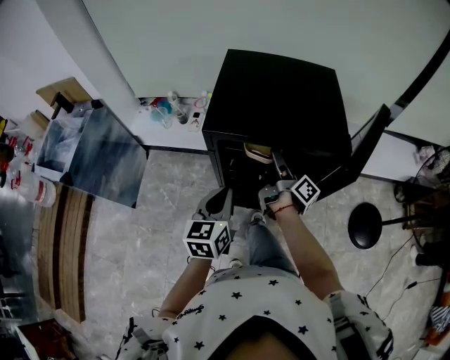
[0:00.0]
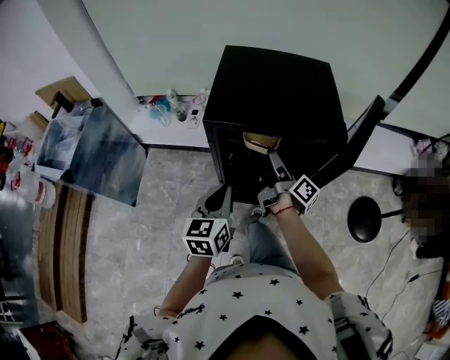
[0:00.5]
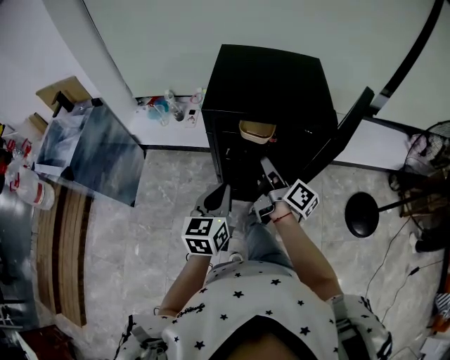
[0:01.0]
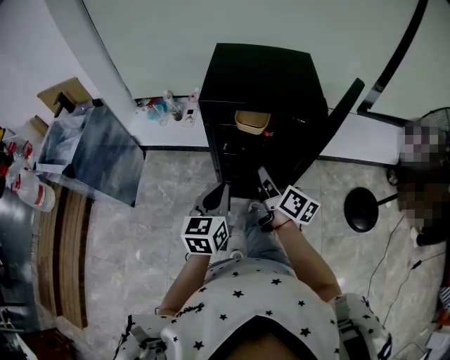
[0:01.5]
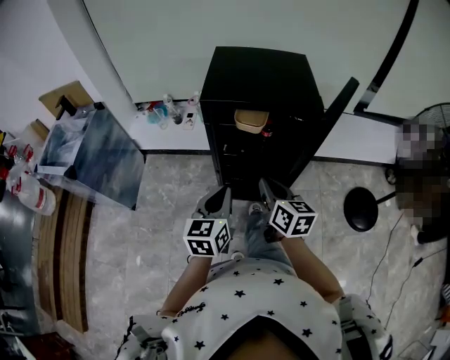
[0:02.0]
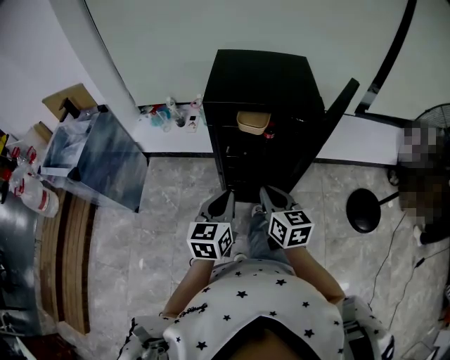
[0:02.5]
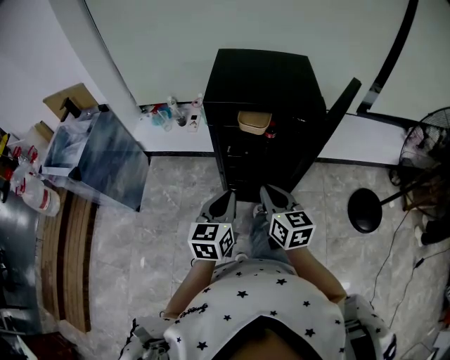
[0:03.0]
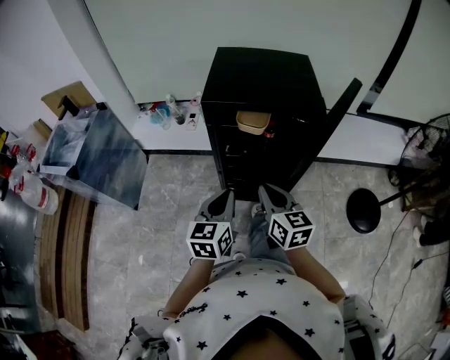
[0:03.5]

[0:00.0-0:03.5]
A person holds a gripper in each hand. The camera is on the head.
0:00.0 to 0:02.0: The left gripper travels backward by some 15 cm. Meanwhile the right gripper moves backward, approximately 25 cm, rolls counterclockwise, seen from behind, by roughly 60 degrees, and closes up.
0:02.0 to 0:03.5: The grippers stay close to where they were, moving slightly.

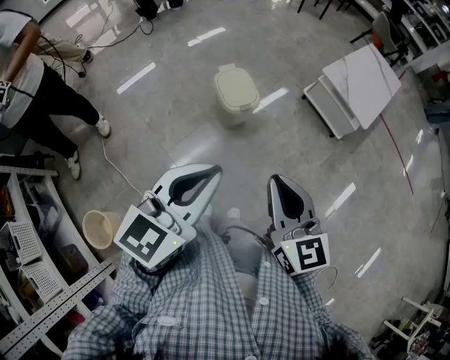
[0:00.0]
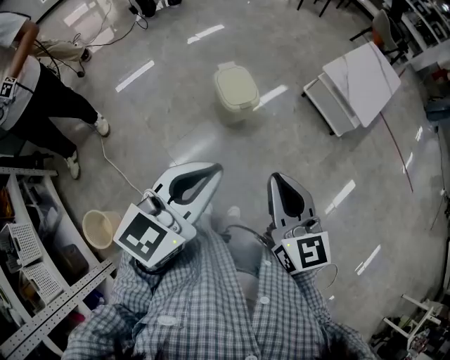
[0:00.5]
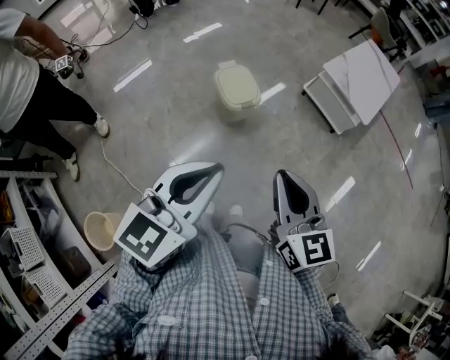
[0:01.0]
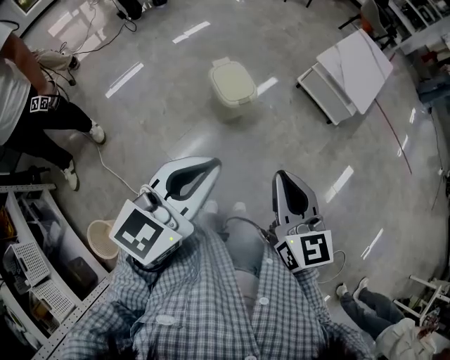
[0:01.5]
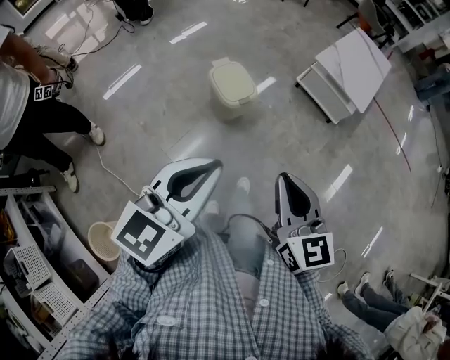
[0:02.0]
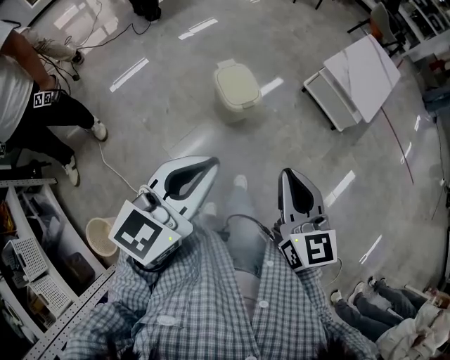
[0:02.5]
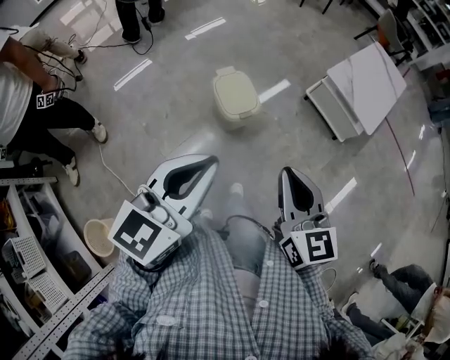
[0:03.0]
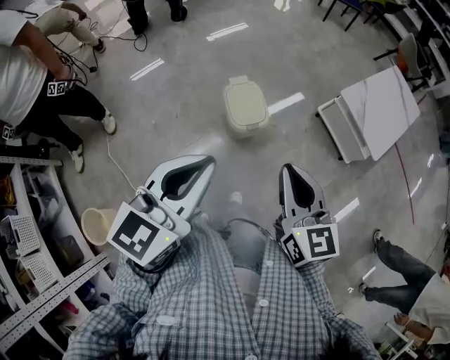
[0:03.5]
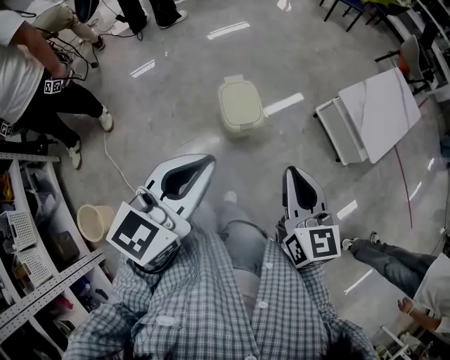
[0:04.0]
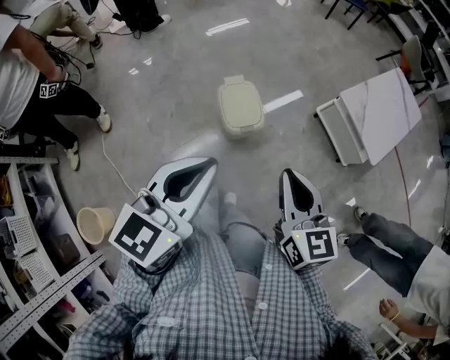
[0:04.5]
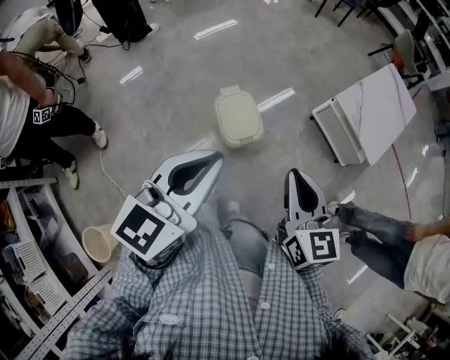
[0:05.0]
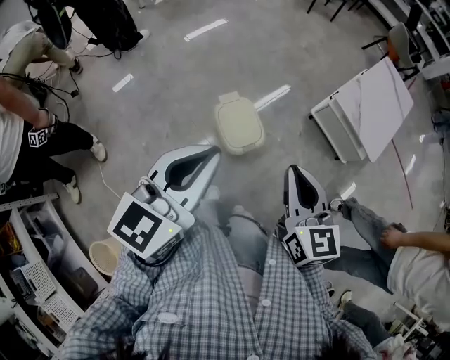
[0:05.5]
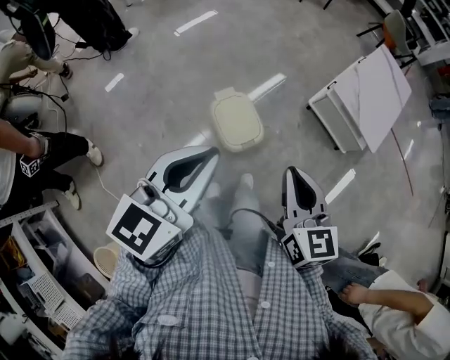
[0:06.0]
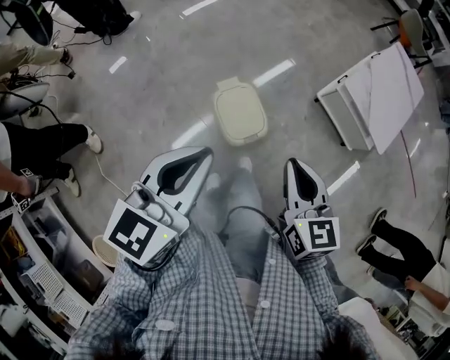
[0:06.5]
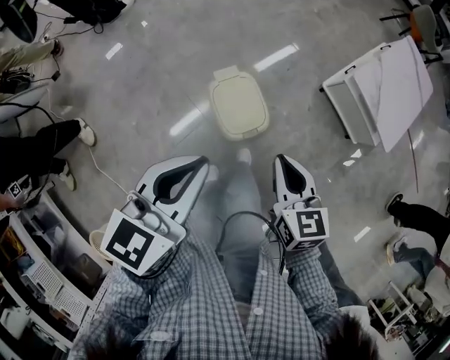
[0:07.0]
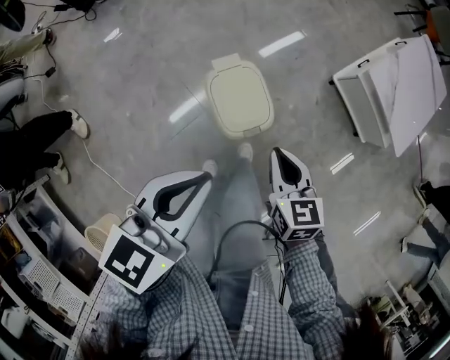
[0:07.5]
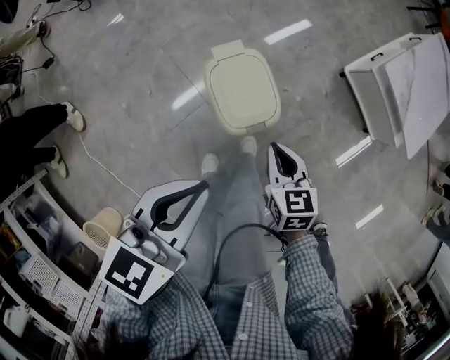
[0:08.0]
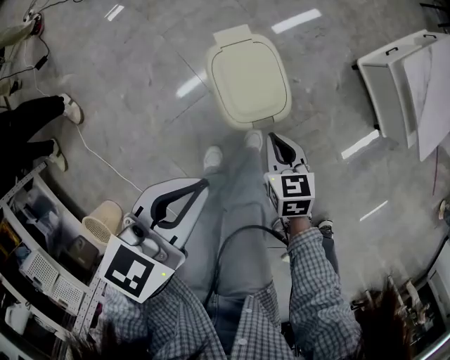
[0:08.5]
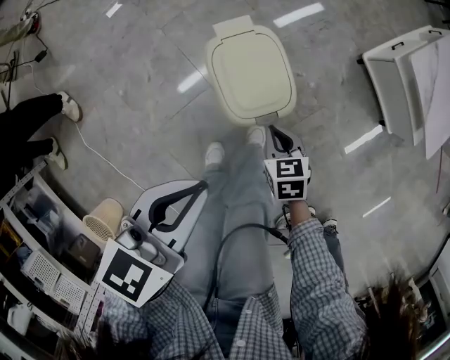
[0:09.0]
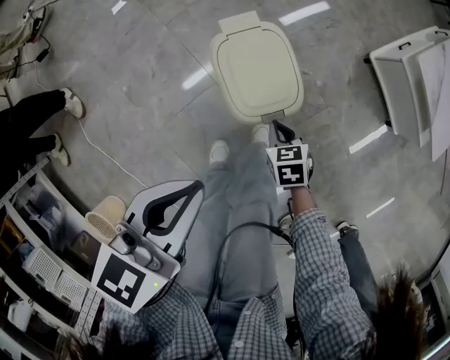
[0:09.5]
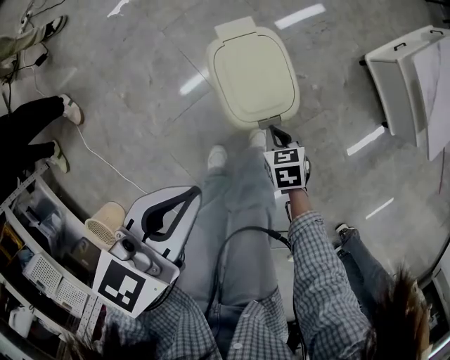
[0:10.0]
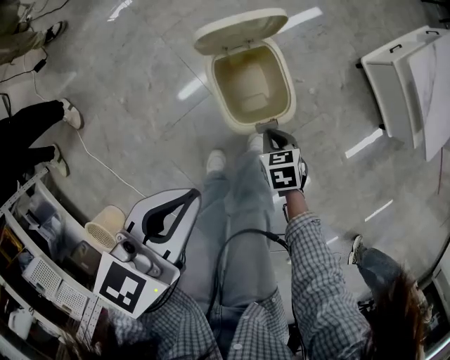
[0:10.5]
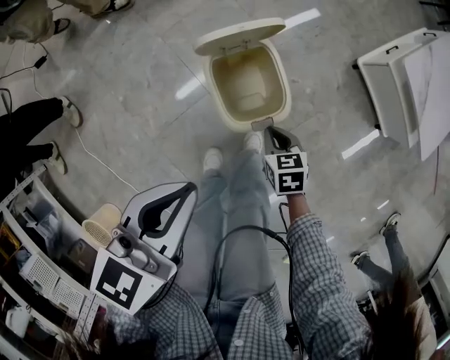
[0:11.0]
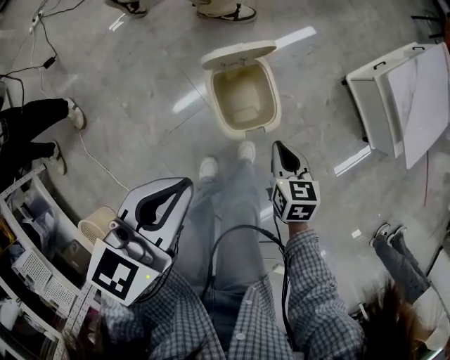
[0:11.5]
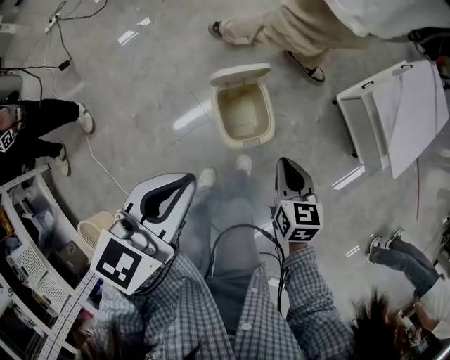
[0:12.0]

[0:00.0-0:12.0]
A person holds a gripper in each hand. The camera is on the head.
0:00.0 to 0:02.0: The grippers move only a little.
0:02.0 to 0:04.0: Both grippers move forward, some 20 cm.
0:04.0 to 0:06.0: The two grippers go some 15 cm forward and to the left.
0:06.0 to 0:08.0: The right gripper is displaced downward by approximately 35 cm, and swivels roughly 30 degrees; the left gripper heads downward, covering approximately 20 cm, and turns by approximately 20 degrees.
0:08.0 to 0:10.0: The right gripper heads downward, covering approximately 20 cm, and rotates approximately 20 degrees, while the left gripper goes about 5 cm downward.
0:10.0 to 0:12.0: The left gripper travels upward by roughly 15 cm. The right gripper is displaced upward by approximately 25 cm, and swivels roughly 30 degrees.

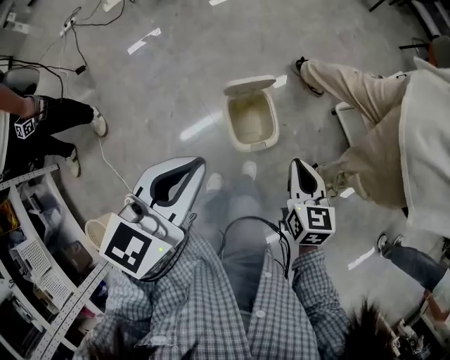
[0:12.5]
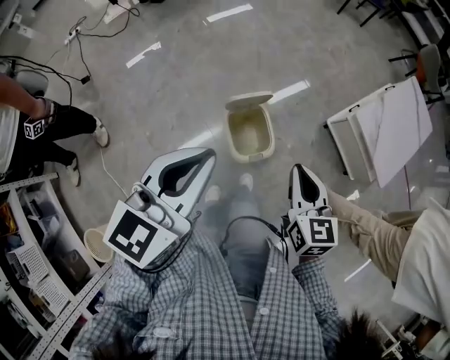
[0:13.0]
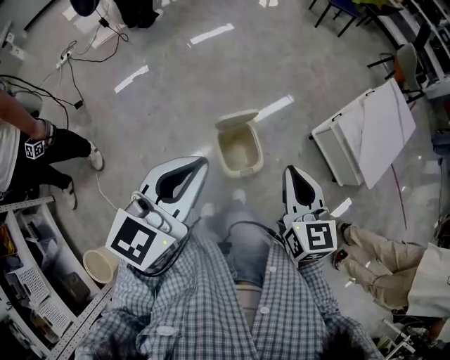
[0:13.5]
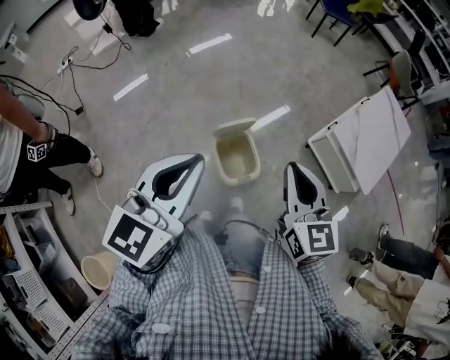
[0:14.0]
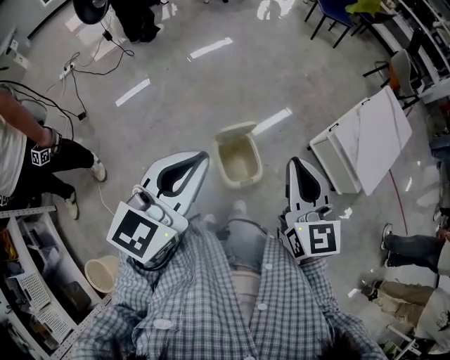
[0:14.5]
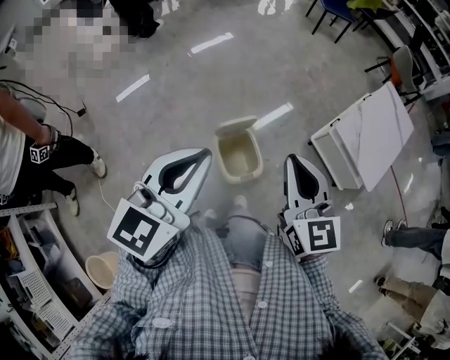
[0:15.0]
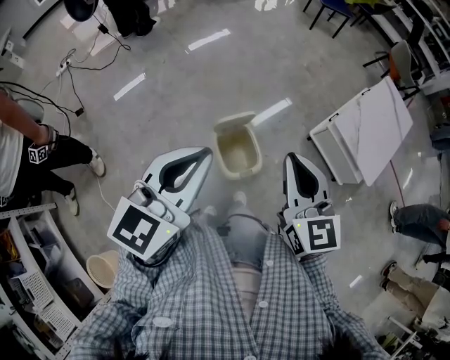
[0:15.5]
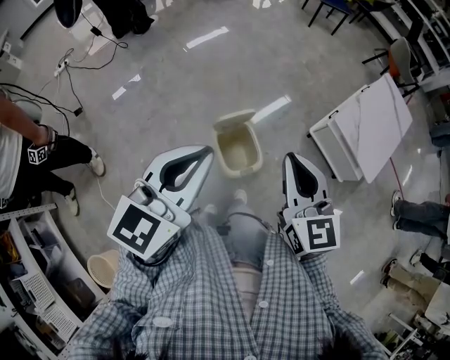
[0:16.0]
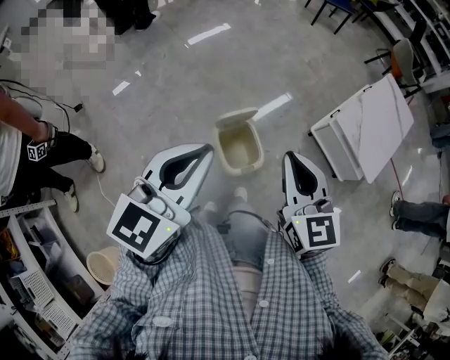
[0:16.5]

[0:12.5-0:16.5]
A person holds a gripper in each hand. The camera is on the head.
0:12.5 to 0:14.5: The right gripper is displaced upward by some 25 cm, and turns by about 30 degrees, while the left gripper heads upward, covering some 10 cm.
0:14.5 to 0:16.5: The grippers stay close to where they were, moving slightly.

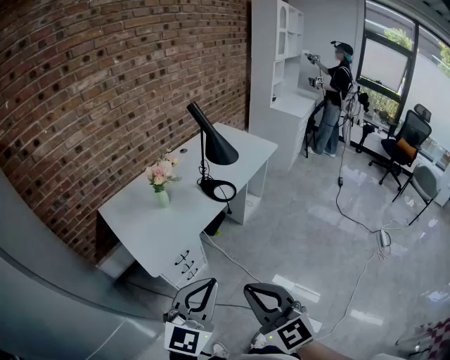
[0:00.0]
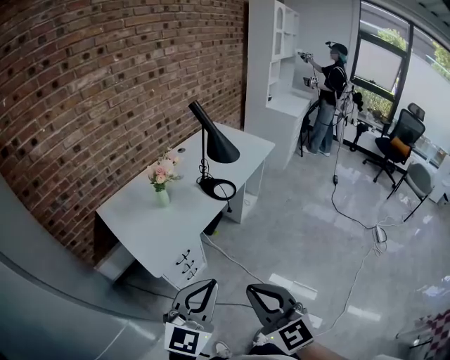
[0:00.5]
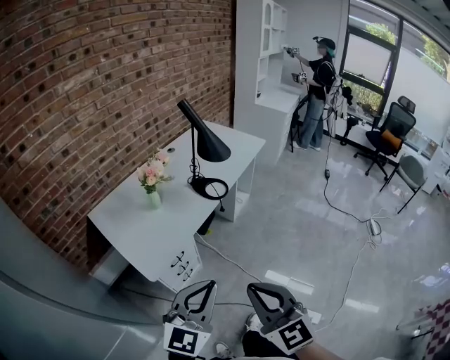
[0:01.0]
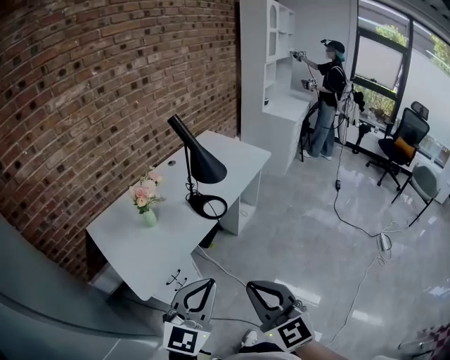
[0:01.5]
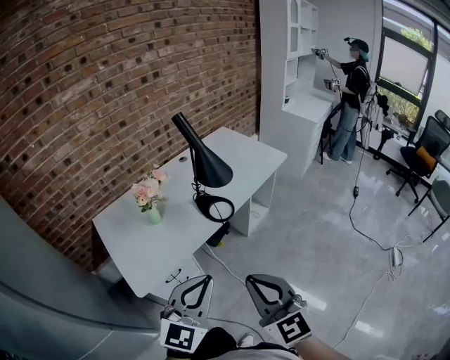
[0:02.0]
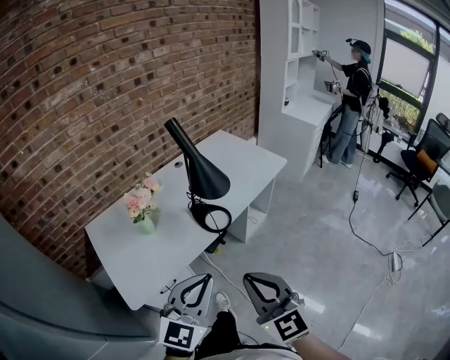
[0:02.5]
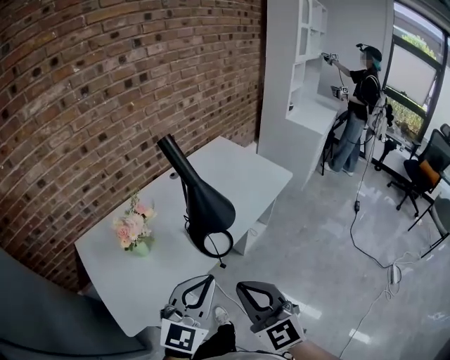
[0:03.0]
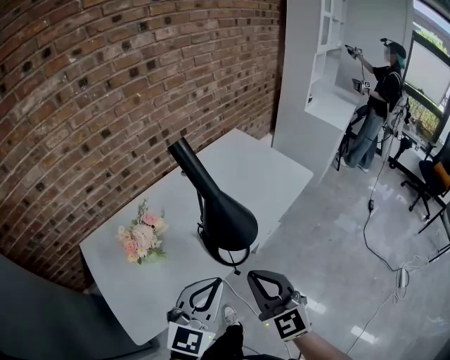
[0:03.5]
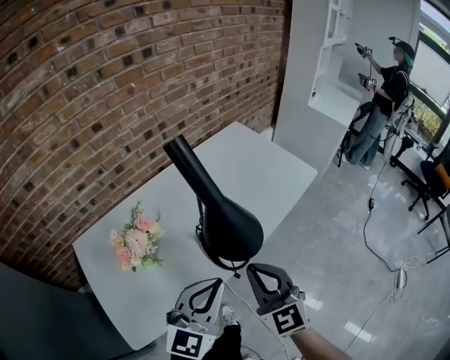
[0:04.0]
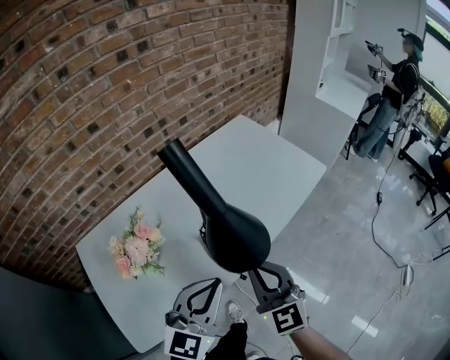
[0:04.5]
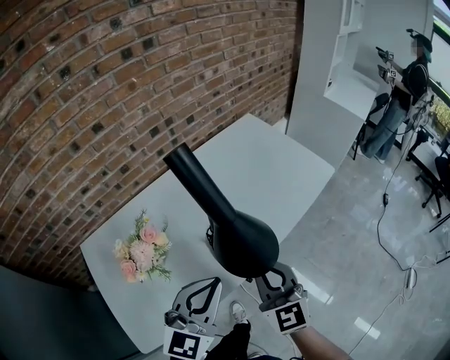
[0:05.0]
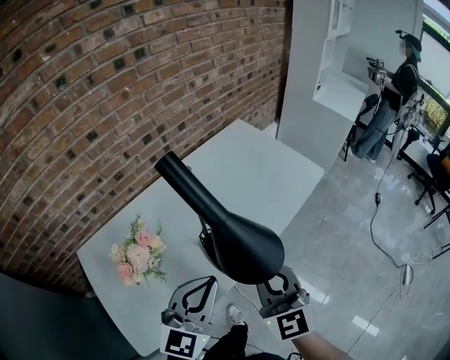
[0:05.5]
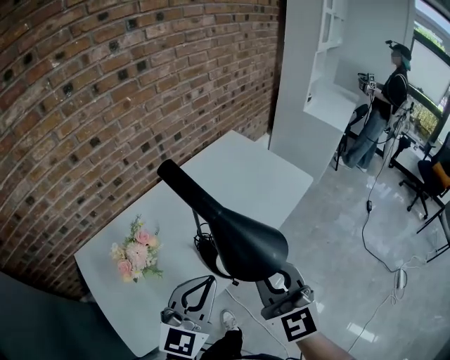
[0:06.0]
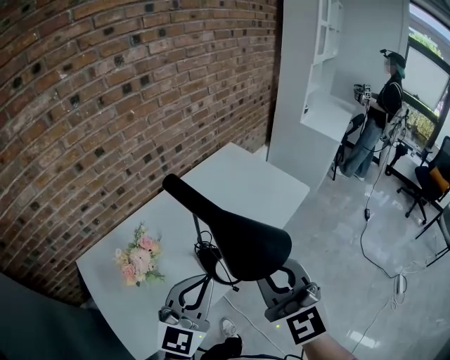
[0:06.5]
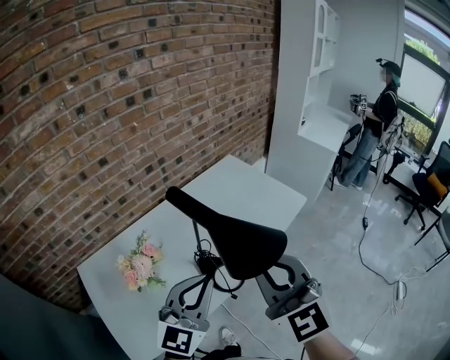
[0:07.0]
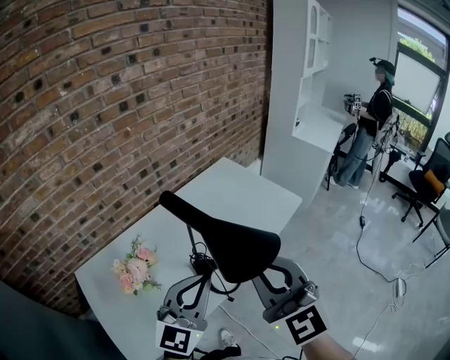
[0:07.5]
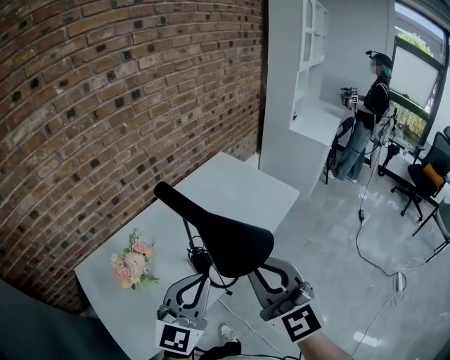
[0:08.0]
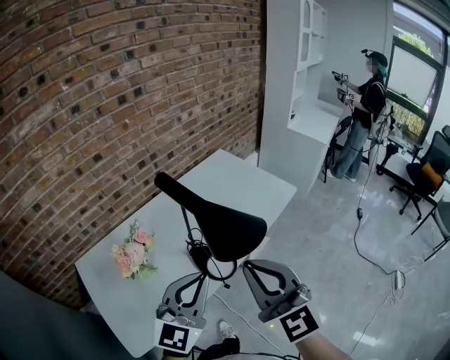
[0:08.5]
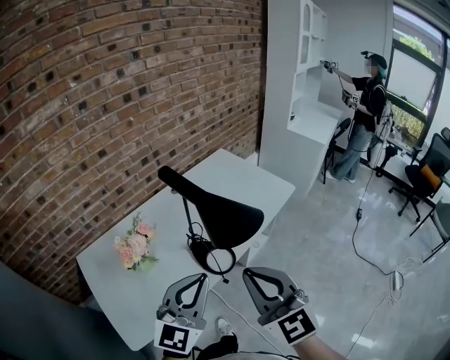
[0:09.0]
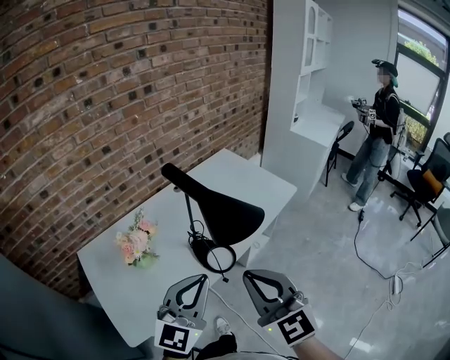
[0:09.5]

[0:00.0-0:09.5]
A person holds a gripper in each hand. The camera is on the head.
0:00.0 to 0:02.0: The two grippers go approximately 20 cm forward and to the right.
0:02.0 to 0:04.0: Both grippers move forward, about 30 cm.
0:04.0 to 0:05.5: The left gripper changes place by some 5 cm. The right gripper ends up some 5 cm from where it was.
0:05.5 to 0:07.5: The right gripper goes some 15 cm upward. Meanwhile the left gripper is displaced upward by some 10 cm.
0:07.5 to 0:09.5: The left gripper moves backward, some 10 cm. The right gripper is displaced backward and downward by about 10 cm.
